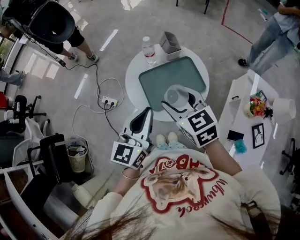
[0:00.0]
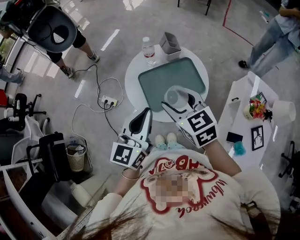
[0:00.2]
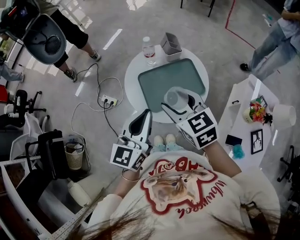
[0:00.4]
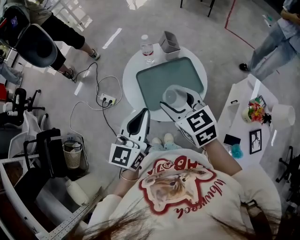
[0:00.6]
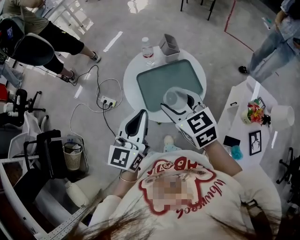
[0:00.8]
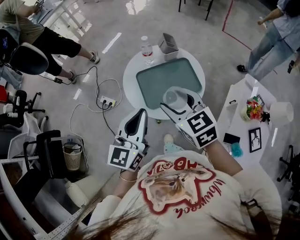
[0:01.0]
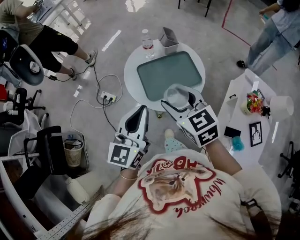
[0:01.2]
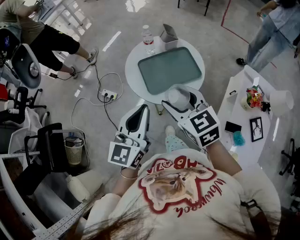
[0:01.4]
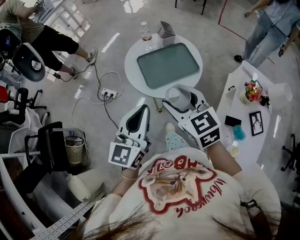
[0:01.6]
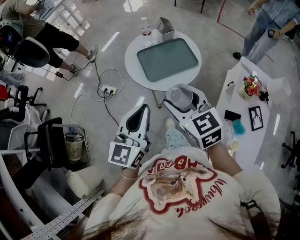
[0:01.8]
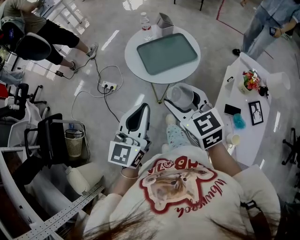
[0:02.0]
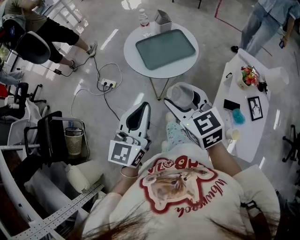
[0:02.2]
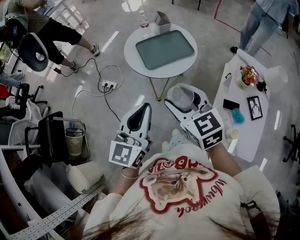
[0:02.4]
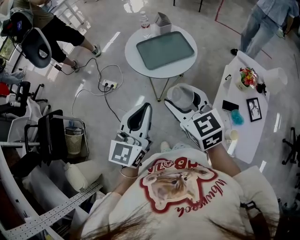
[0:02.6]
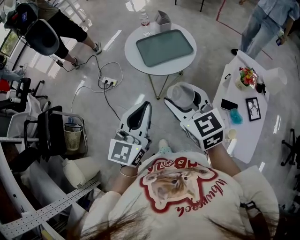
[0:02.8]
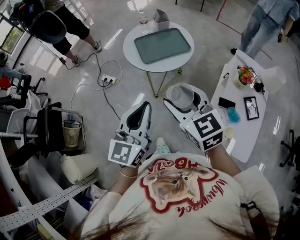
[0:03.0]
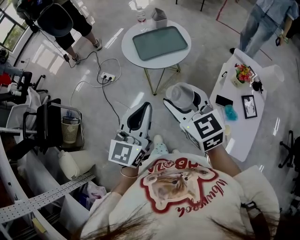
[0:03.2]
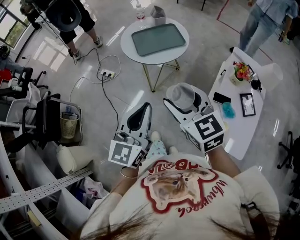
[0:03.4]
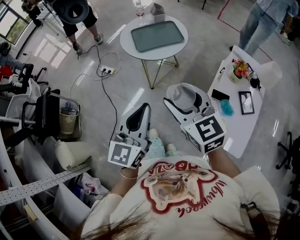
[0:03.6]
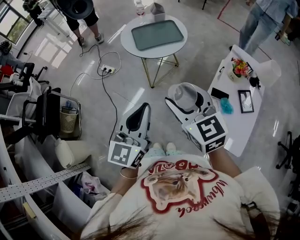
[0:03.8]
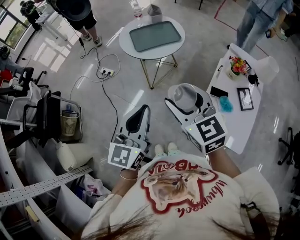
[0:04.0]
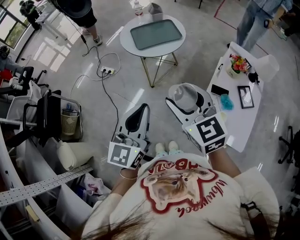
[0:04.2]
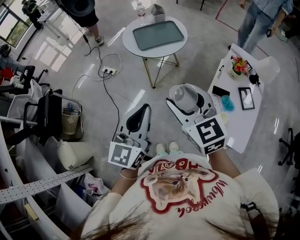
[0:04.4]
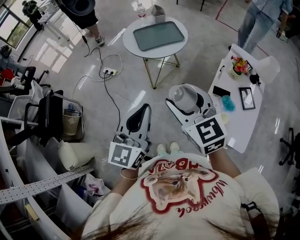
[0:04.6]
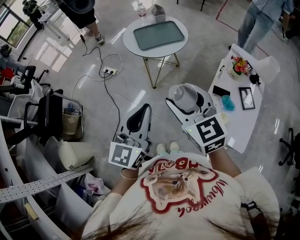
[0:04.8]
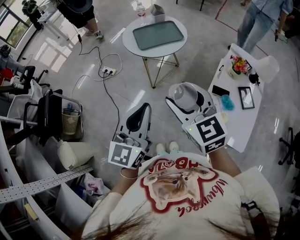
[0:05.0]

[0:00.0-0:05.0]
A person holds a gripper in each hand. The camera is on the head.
0:00.0 to 0:01.6: The grippers both shift backward by roughly 15 cm.
0:01.6 to 0:03.4: The two grippers go some 25 cm backward.
0:03.4 to 0:05.0: Both grippers travel together backward, about 5 cm.

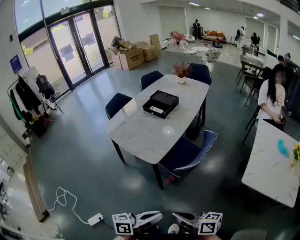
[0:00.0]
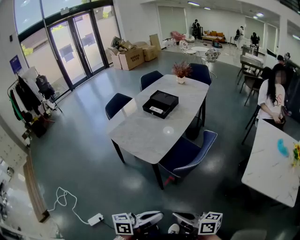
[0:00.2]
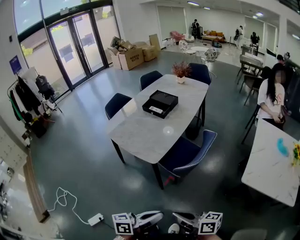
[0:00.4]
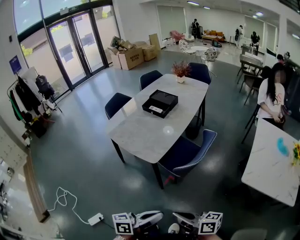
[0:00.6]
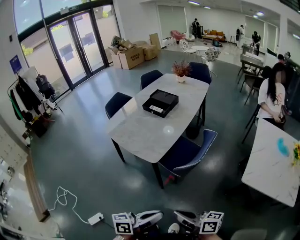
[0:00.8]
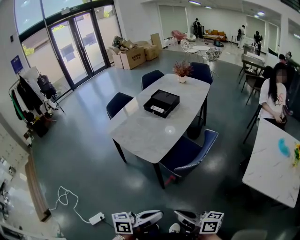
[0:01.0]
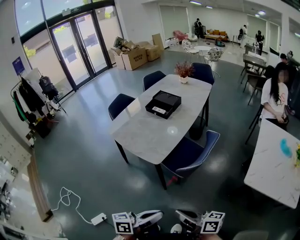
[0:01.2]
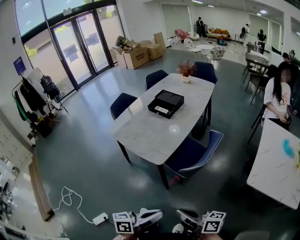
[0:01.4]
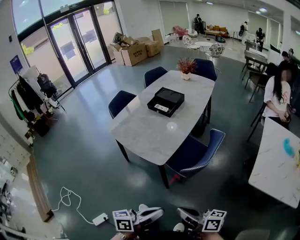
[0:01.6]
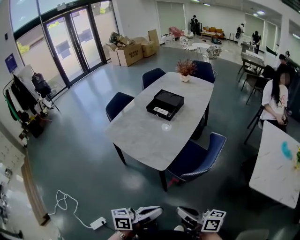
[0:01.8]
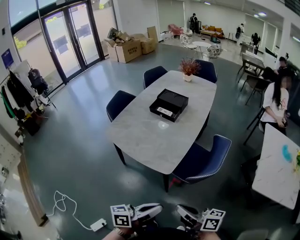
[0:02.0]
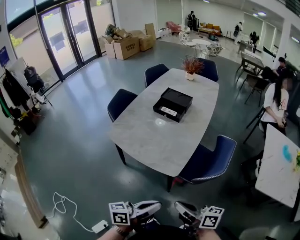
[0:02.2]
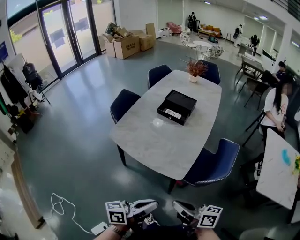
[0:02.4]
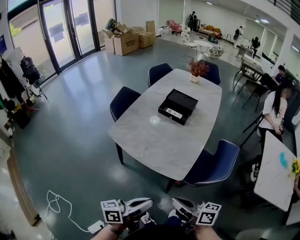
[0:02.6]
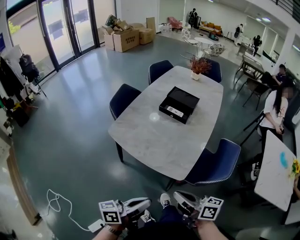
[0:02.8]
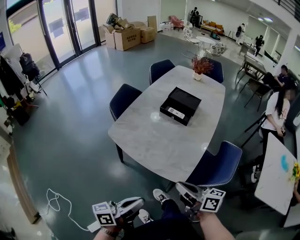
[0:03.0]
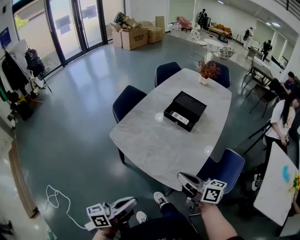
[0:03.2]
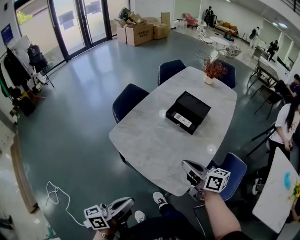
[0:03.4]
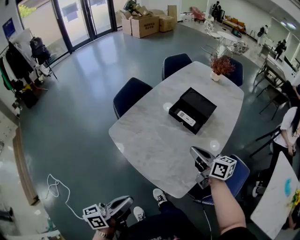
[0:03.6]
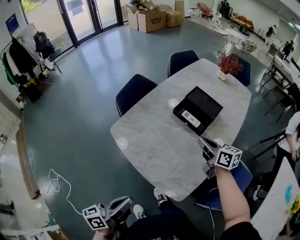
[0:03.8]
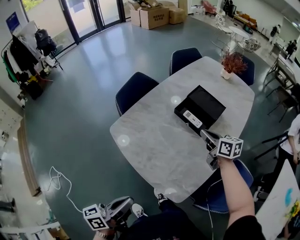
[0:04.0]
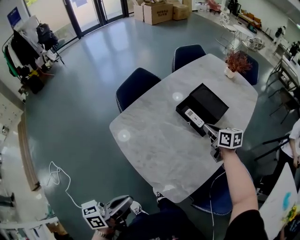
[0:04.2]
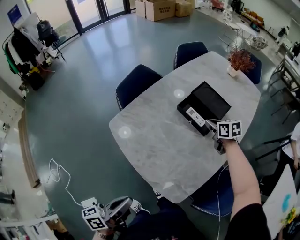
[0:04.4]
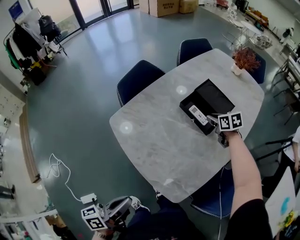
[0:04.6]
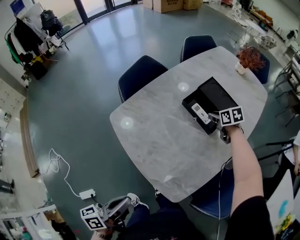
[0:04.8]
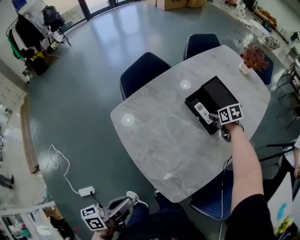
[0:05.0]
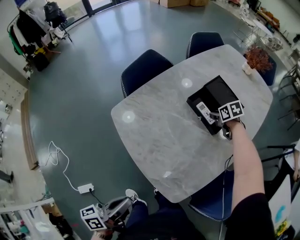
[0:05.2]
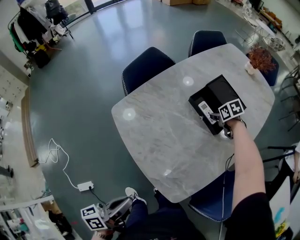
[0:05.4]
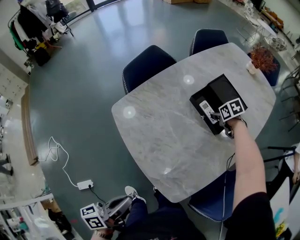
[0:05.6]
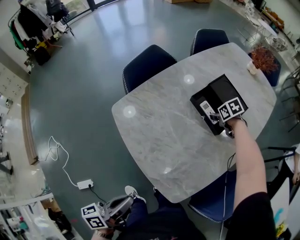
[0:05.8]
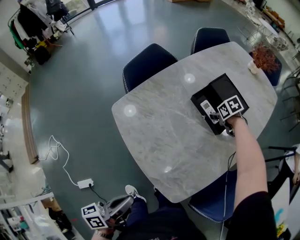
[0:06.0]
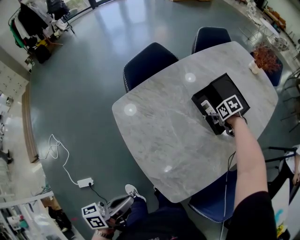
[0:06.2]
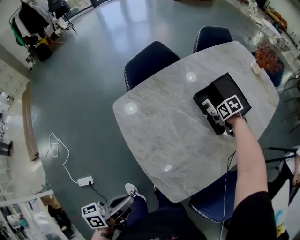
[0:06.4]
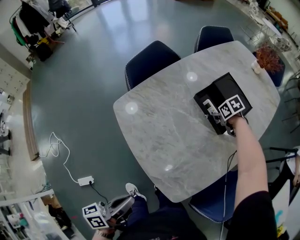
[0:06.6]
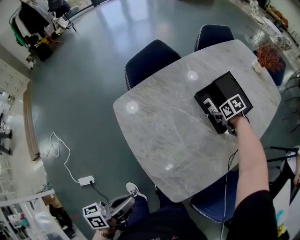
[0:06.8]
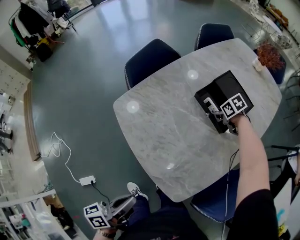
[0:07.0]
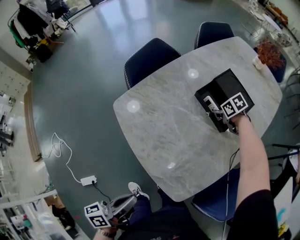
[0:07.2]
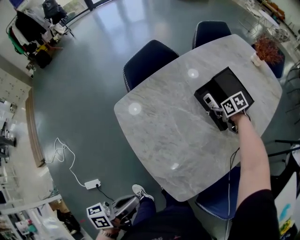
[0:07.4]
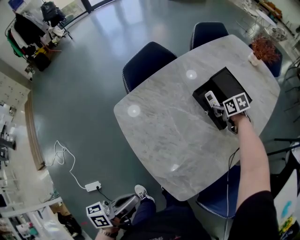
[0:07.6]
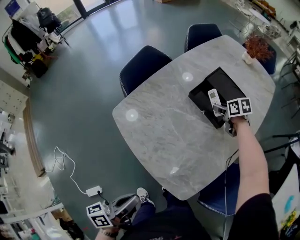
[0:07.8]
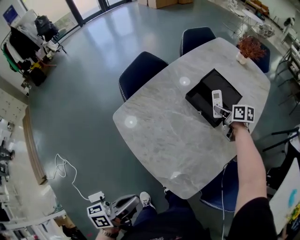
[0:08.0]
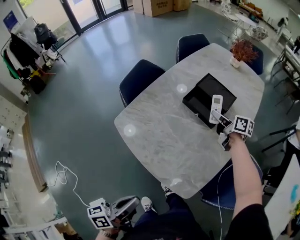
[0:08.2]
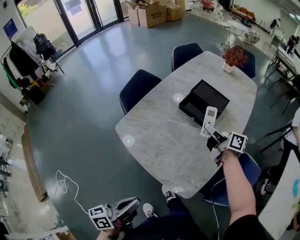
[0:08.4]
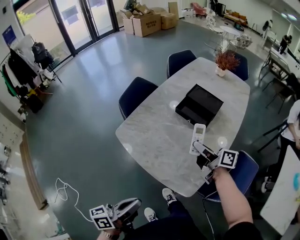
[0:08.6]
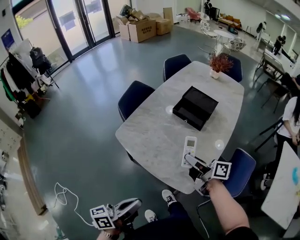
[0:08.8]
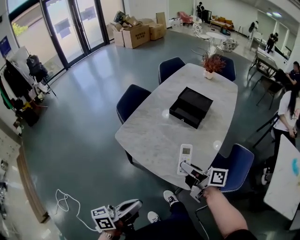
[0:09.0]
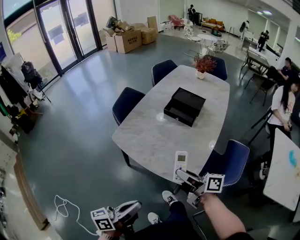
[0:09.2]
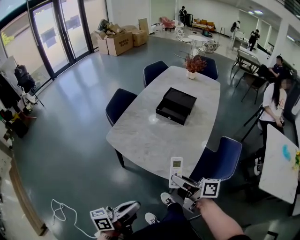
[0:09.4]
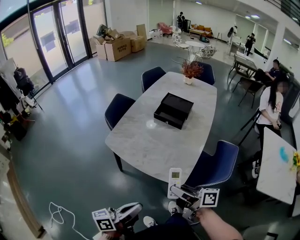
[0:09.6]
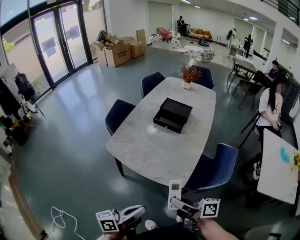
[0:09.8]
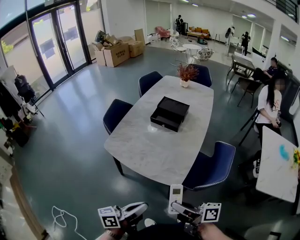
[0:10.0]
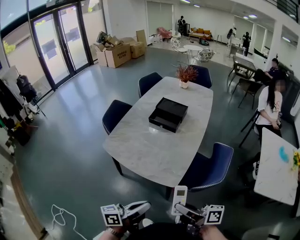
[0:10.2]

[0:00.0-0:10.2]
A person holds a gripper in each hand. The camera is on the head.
0:00.0 to 0:01.4: There are only small adjustments of the grippers.
0:01.4 to 0:03.0: The right gripper moves forward and to the left, some 35 cm, while the left gripper heads to the left and forward, covering some 35 cm.
0:03.0 to 0:04.4: The right gripper heads forward, covering roughly 50 cm, and points its fingers roughly 40 degrees further downward. The left gripper goes approximately 10 cm forward, and turns by some 30 degrees.
0:04.4 to 0:05.8: The right gripper goes approximately 10 cm downward and forward, changes its angle by approximately 30 degrees, and opens up.
0:05.8 to 0:07.2: The grippers make only small movements.
0:07.2 to 0:08.8: The left gripper heads upward, covering some 5 cm, and rotates about 20 degrees; the right gripper moves roughly 40 cm, and points its fingers some 60 degrees further upward.
0:08.8 to 0:10.2: The left gripper shifts about 10 cm to the right and backward. The right gripper is displaced backward by about 30 cm.

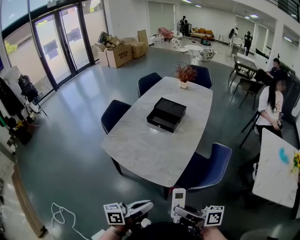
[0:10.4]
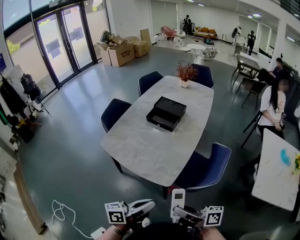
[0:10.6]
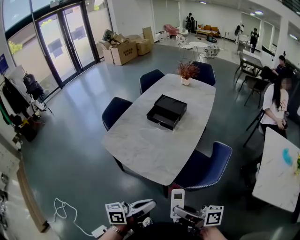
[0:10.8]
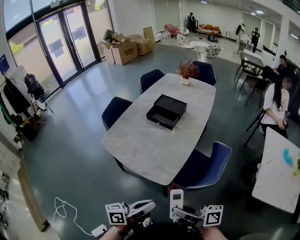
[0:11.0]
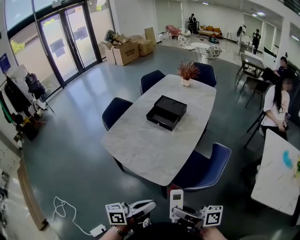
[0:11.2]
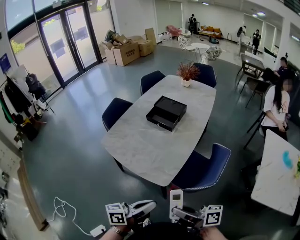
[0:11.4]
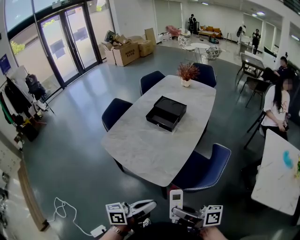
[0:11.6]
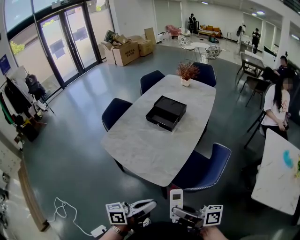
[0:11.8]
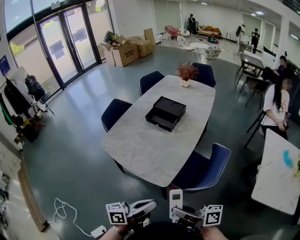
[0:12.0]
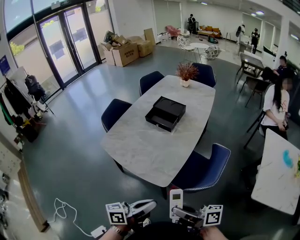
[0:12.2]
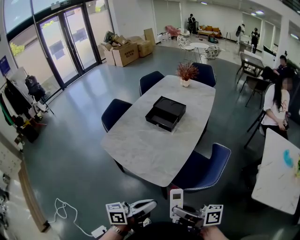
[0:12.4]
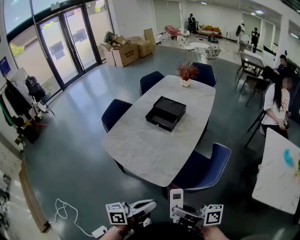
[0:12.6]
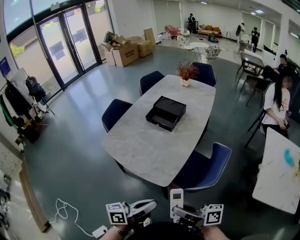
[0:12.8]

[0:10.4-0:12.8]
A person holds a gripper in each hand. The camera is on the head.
0:10.4 to 0:11.6: The left gripper heads to the right, covering about 5 cm.
0:11.6 to 0:12.8: Both grippers stay put.

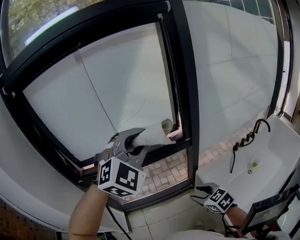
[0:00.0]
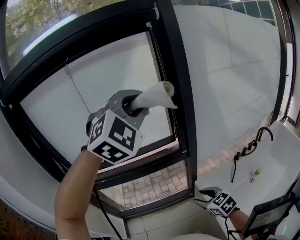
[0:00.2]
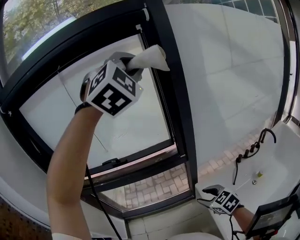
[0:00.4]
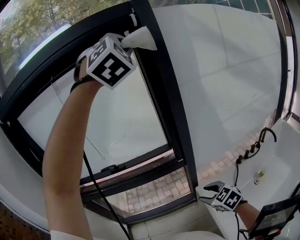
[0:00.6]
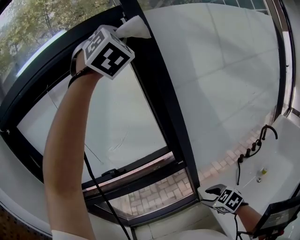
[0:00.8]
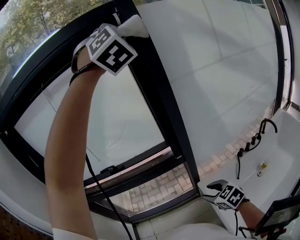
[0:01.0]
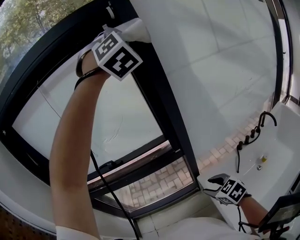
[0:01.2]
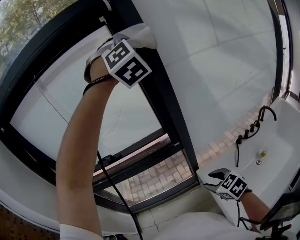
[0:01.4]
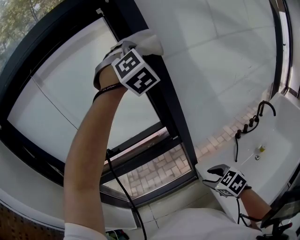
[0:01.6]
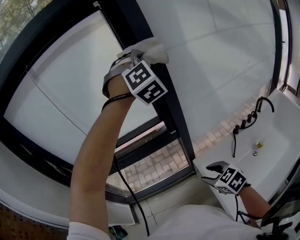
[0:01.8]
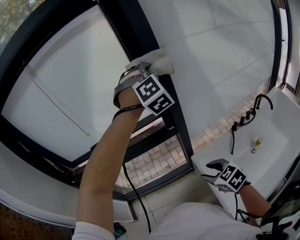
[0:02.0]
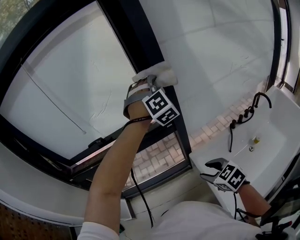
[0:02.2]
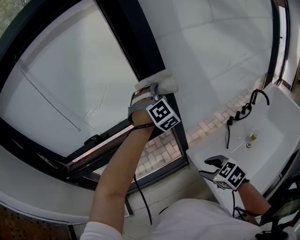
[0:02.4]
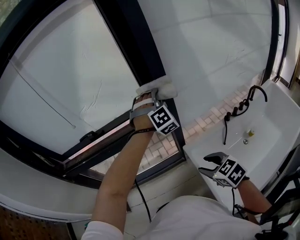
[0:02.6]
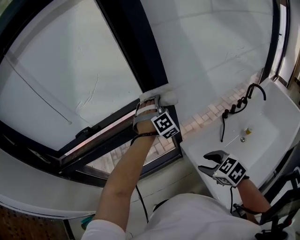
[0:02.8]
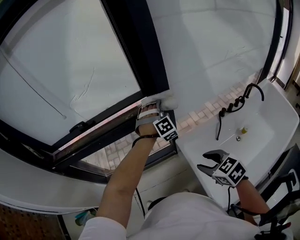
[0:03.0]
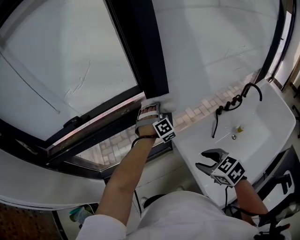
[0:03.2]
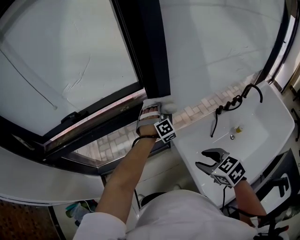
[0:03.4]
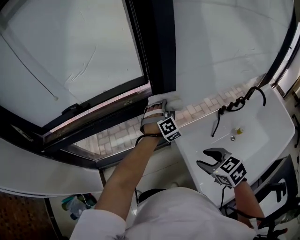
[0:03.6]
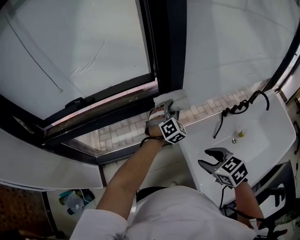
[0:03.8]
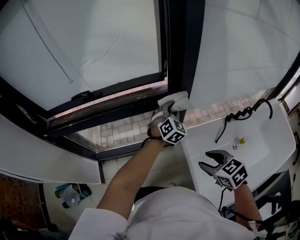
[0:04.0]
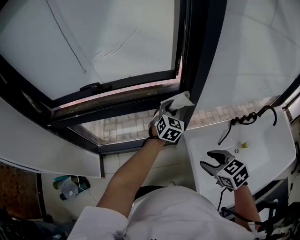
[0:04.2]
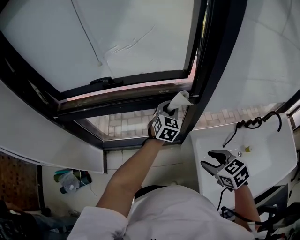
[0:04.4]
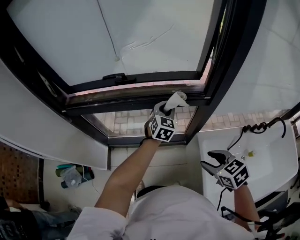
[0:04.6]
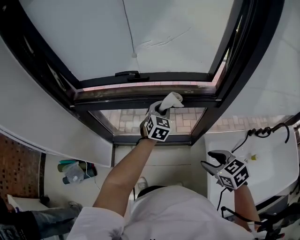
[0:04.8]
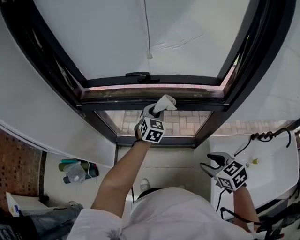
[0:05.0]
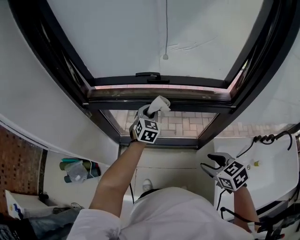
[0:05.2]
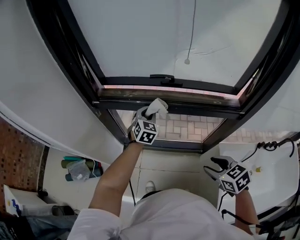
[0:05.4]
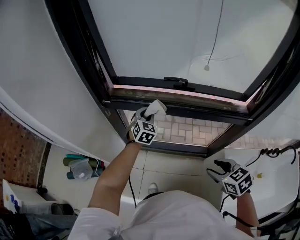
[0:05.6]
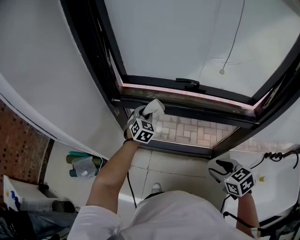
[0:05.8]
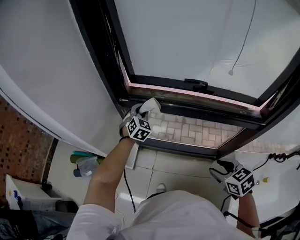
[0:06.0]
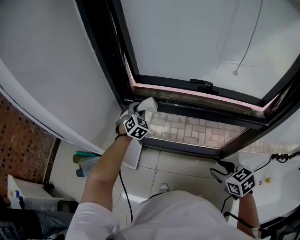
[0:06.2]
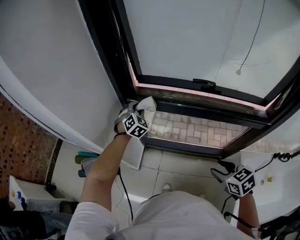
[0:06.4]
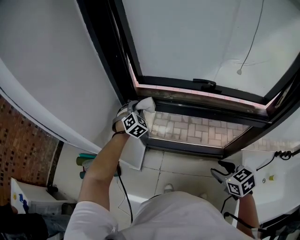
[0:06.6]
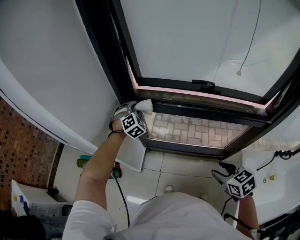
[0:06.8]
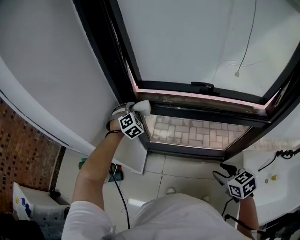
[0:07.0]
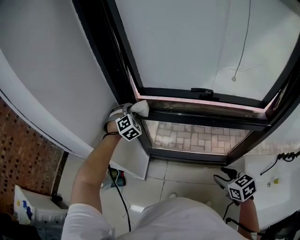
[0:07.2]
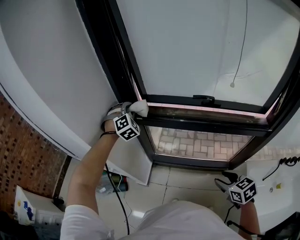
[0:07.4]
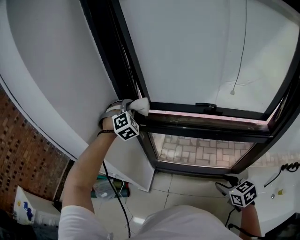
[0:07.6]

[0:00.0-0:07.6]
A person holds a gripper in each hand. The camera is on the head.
0:00.0 to 0:01.6: The left gripper travels to the right, forward and upward by roughly 35 cm, and turns by about 30 degrees. The right gripper moves to the right, approximately 15 cm.
0:01.6 to 0:03.0: The left gripper moves downward, about 50 cm. Meanwhile the right gripper ends up approximately 5 cm from where it was.
0:03.0 to 0:04.6: The left gripper goes some 20 cm to the left, and twists some 60 degrees counterclockwise, seen from behind; the right gripper shifts roughly 10 cm to the left and forward.
0:04.6 to 0:06.0: The left gripper moves to the left, roughly 50 cm, and turns by approximately 30 degrees; the right gripper travels to the left and forward by about 25 cm.
0:06.0 to 0:07.6: The left gripper heads upward and to the left, covering approximately 20 cm, and turns by approximately 40 degrees.
